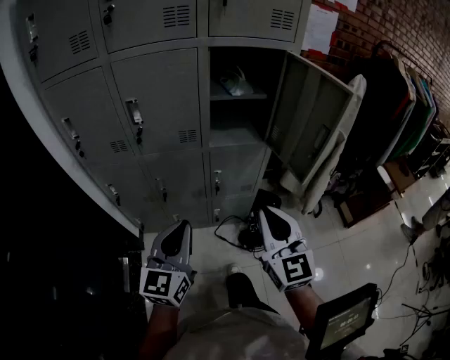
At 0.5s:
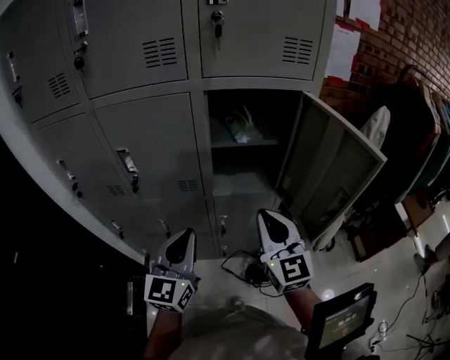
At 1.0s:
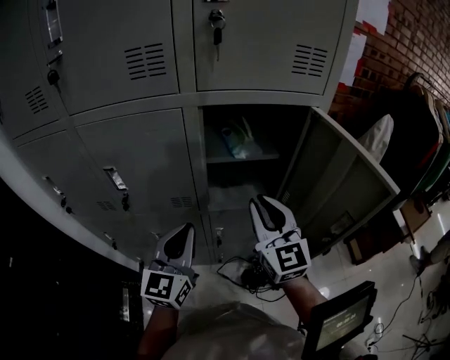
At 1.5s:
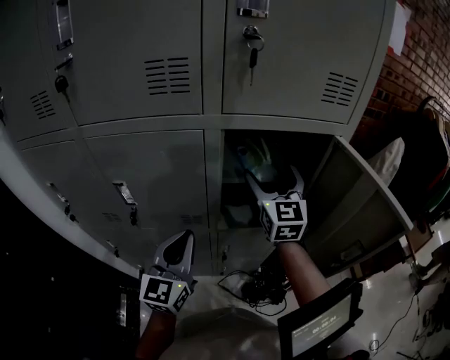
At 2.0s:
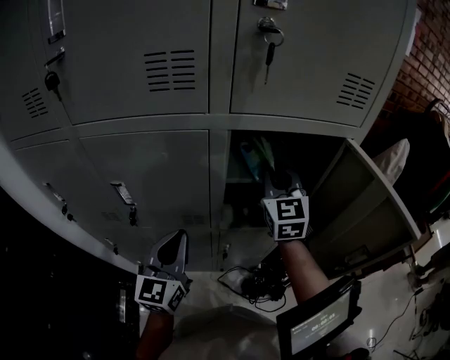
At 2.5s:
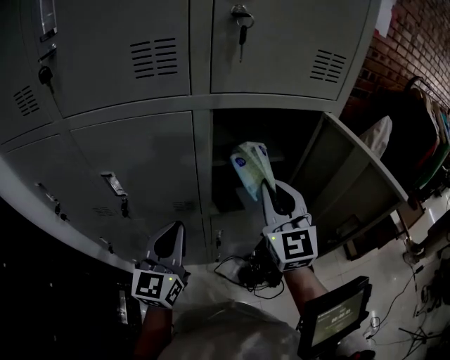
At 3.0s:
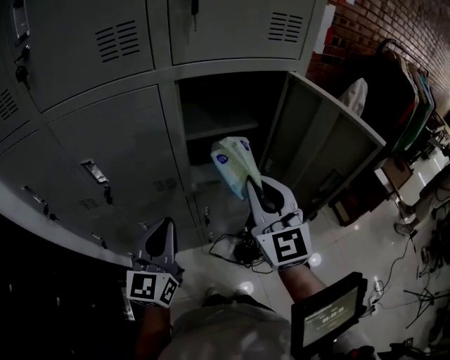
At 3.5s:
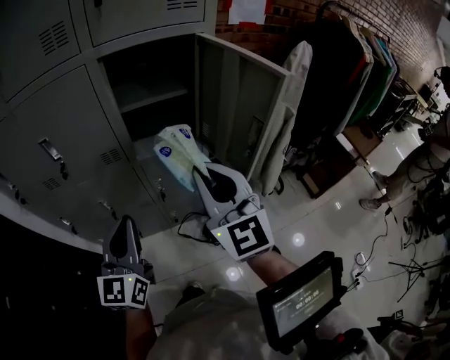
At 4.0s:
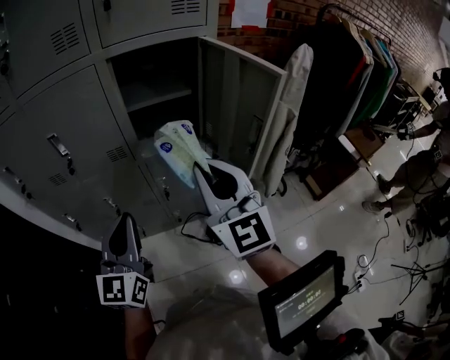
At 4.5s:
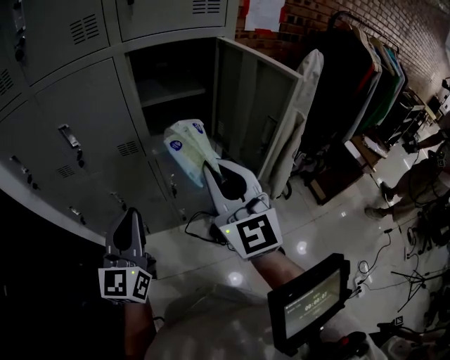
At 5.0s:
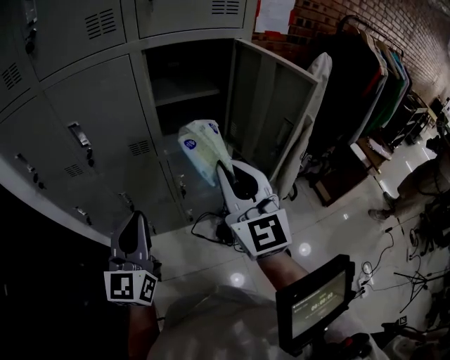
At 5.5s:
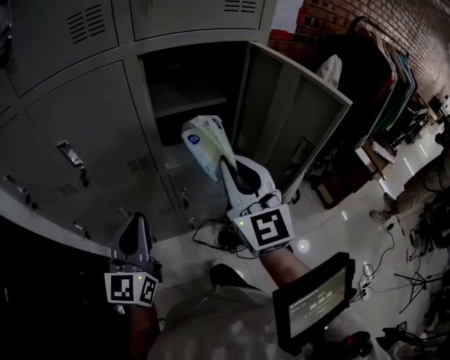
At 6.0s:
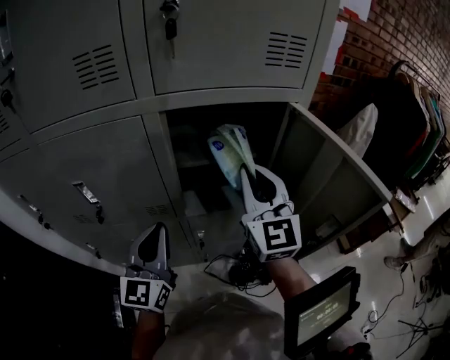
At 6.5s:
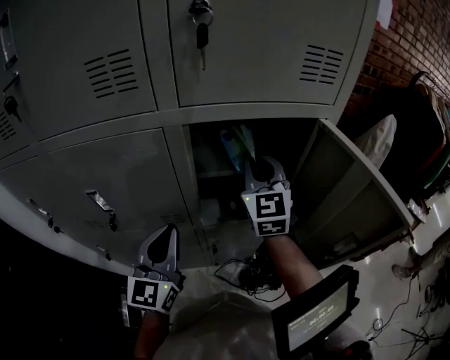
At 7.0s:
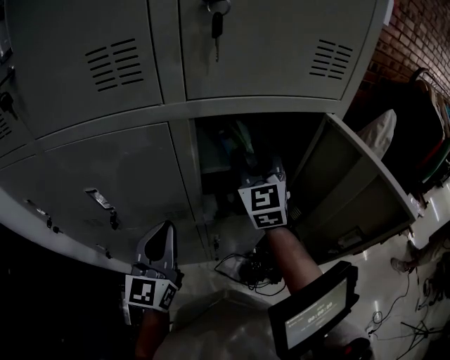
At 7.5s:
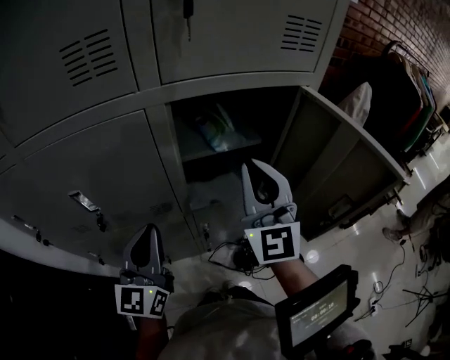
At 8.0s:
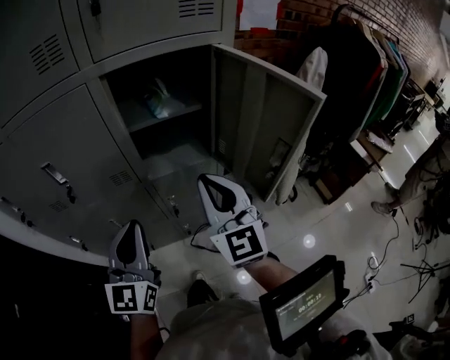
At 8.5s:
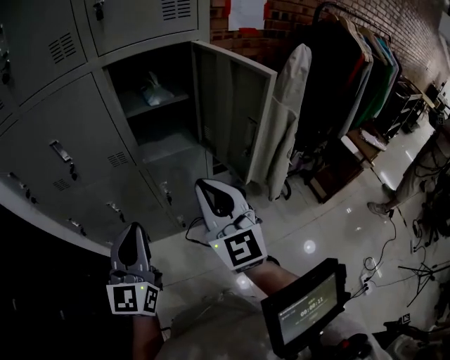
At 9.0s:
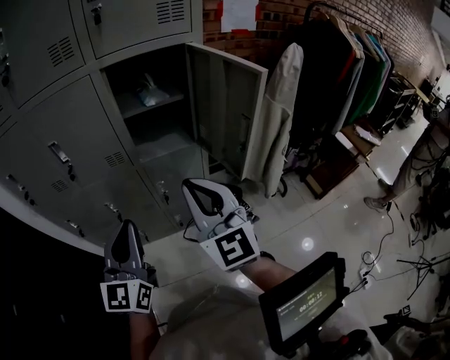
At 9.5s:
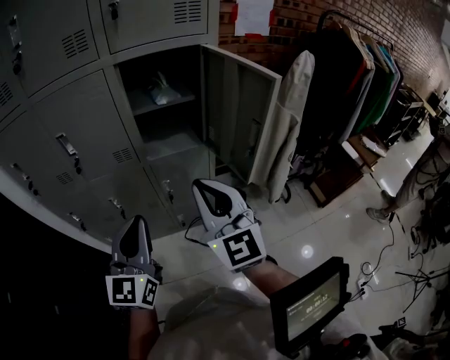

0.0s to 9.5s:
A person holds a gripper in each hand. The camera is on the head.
0.0s to 2.0s: The right gripper shifts roughly 40 cm forward, and opens, then closes once more. Meanwhile the left gripper travels forward by roughly 30 cm.
2.0s to 4.0s: The left gripper goes about 20 cm backward; the right gripper moves backward, approximately 35 cm.
4.0s to 5.5s: The right gripper shifts about 10 cm forward, while the left gripper shifts some 10 cm forward and to the left.
5.5s to 7.5s: Both grippers travel together forward, about 10 cm.
7.5s to 9.5s: The right gripper moves backward, approximately 25 cm; the left gripper is displaced backward and to the right by some 25 cm.

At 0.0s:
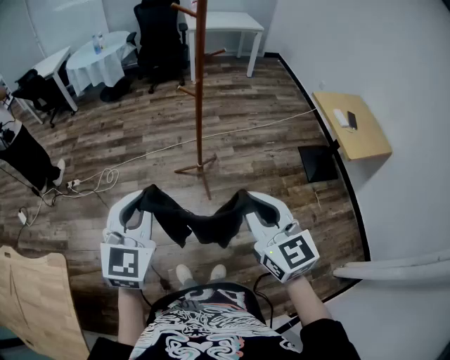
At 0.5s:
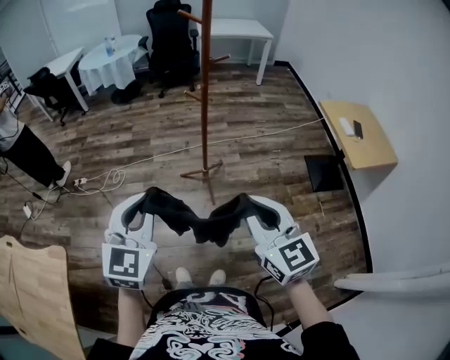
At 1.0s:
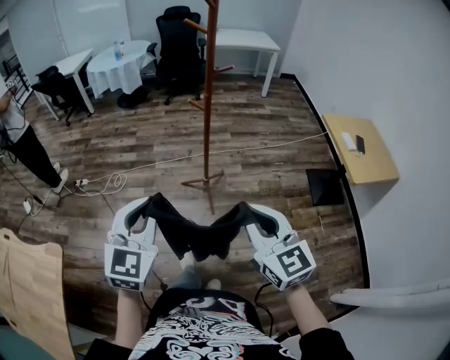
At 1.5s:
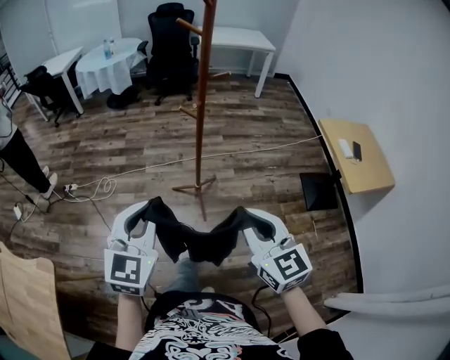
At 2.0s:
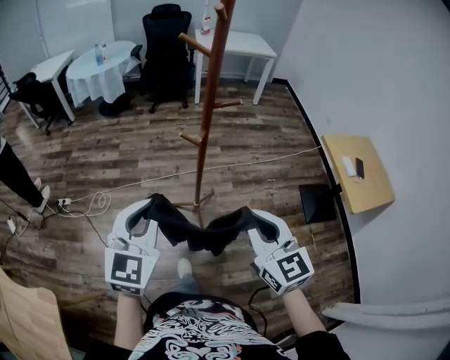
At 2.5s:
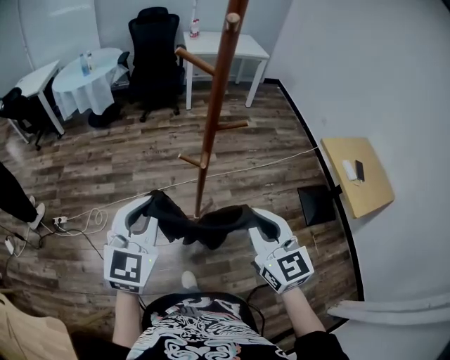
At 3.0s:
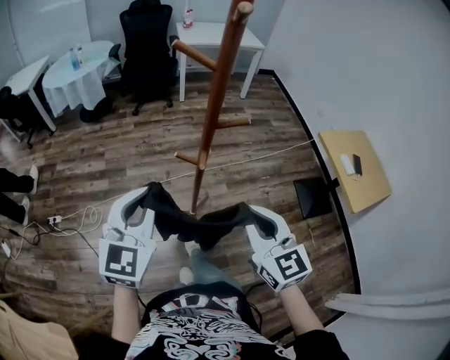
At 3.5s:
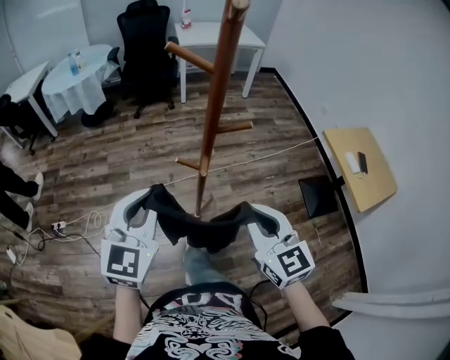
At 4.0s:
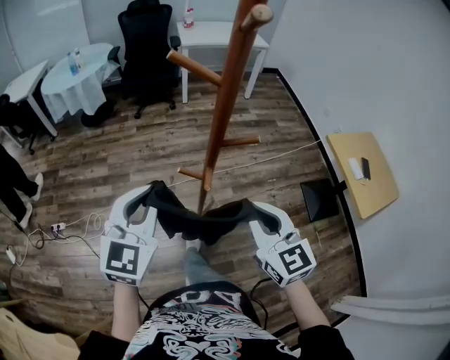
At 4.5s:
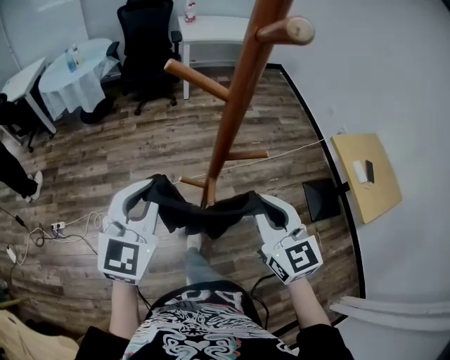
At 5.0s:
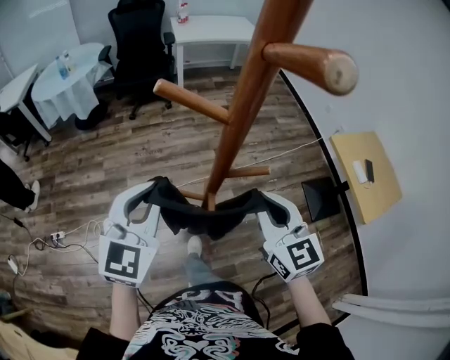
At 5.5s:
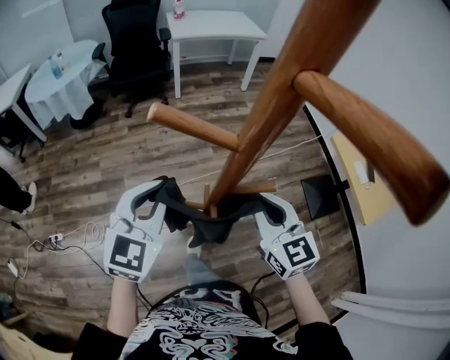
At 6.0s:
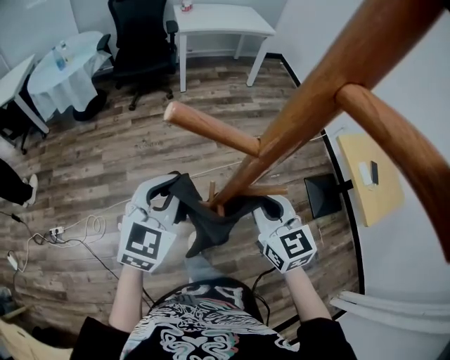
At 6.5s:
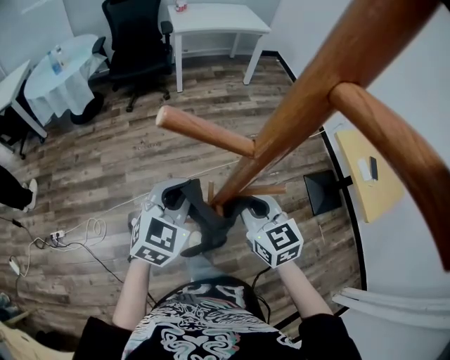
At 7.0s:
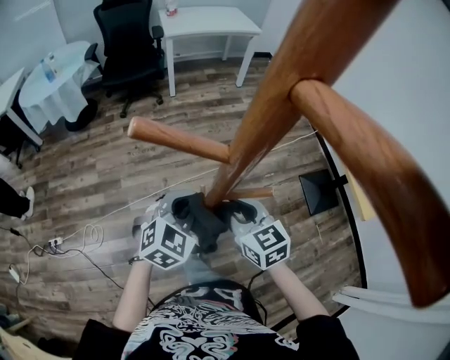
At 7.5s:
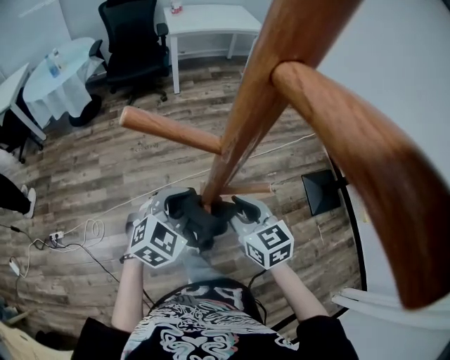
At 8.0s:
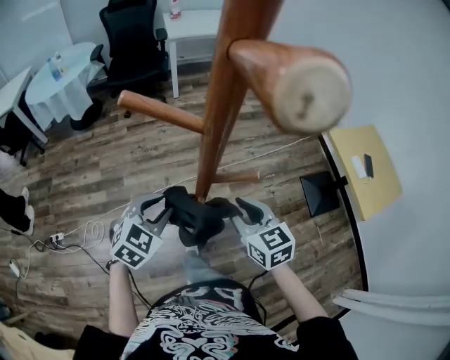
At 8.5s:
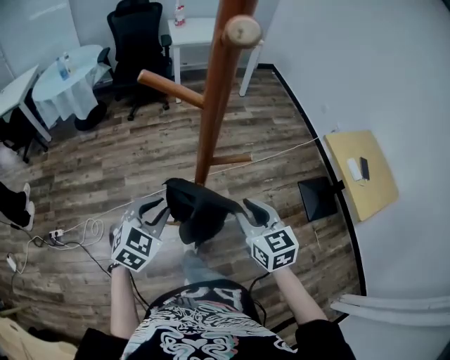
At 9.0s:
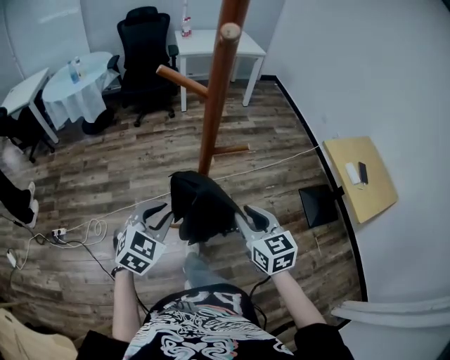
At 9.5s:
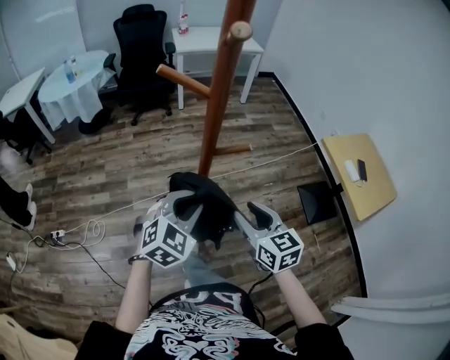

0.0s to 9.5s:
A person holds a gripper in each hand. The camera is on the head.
0.0s to 2.0s: The two grippers go roughly 20 cm forward.
2.0s to 4.0s: The two grippers go approximately 20 cm forward.
4.0s to 5.5s: Both grippers travel together forward, some 15 cm.
5.5s to 7.5s: The right gripper shifts approximately 10 cm downward, and opens up. The left gripper shifts about 15 cm downward and to the right, and swivels approximately 30 degrees.
7.5s to 9.5s: The two grippers go approximately 10 cm backward.

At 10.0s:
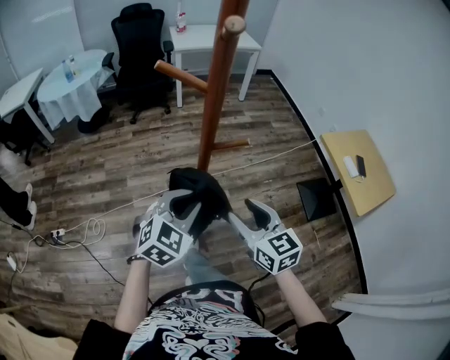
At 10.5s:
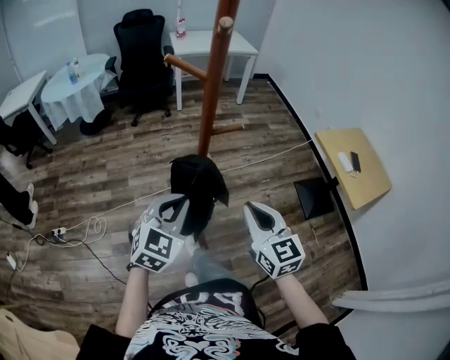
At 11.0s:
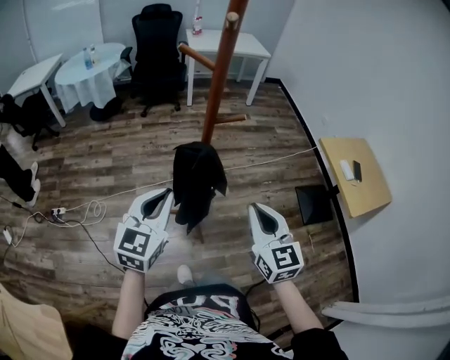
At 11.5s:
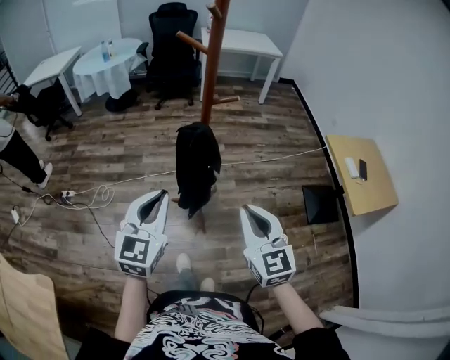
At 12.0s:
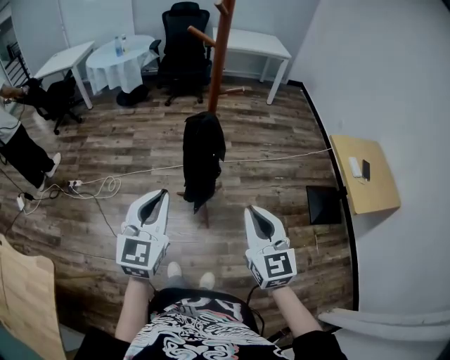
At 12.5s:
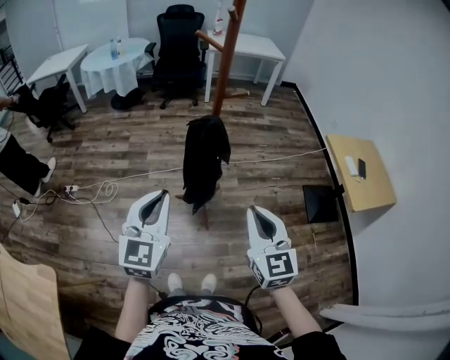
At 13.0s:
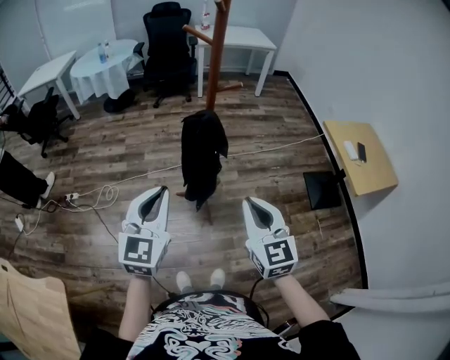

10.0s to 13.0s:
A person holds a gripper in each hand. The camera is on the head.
10.0s to 11.5s: The grippers both shift backward by some 20 cm. The right gripper closes its fingers; the left gripper changes its angle by approximately 40 degrees.
11.5s to 13.0s: The left gripper ends up approximately 5 cm from where it was. Meanwhile the right gripper moves some 5 cm.

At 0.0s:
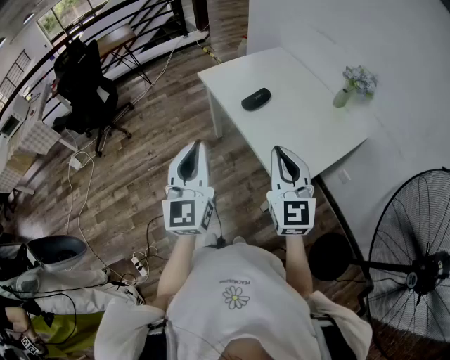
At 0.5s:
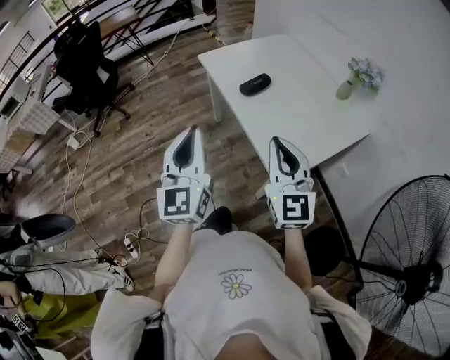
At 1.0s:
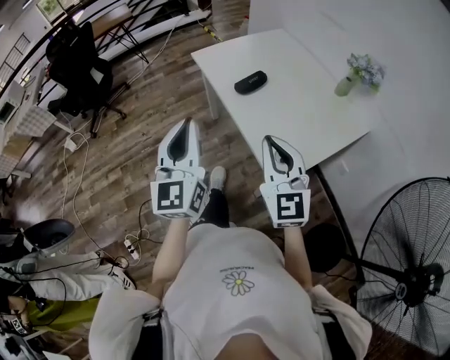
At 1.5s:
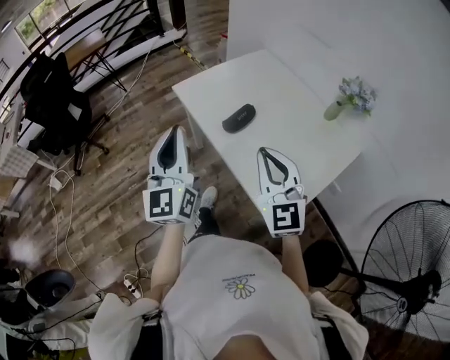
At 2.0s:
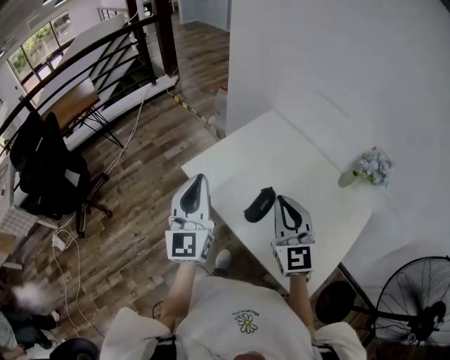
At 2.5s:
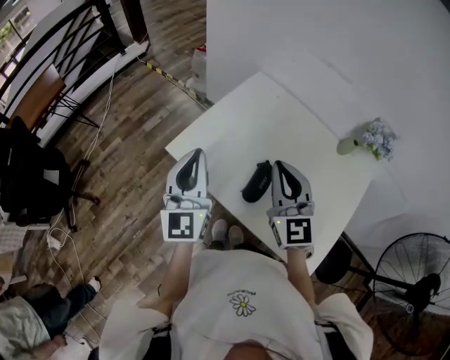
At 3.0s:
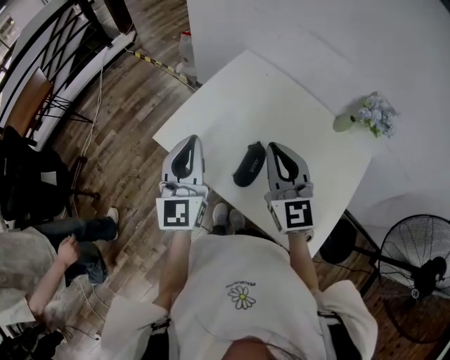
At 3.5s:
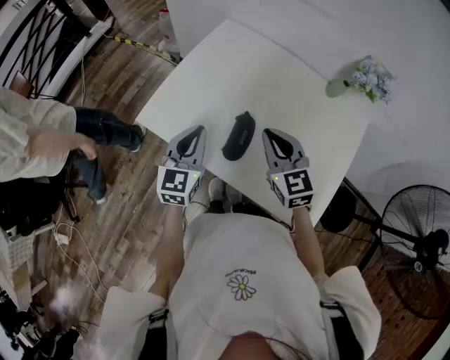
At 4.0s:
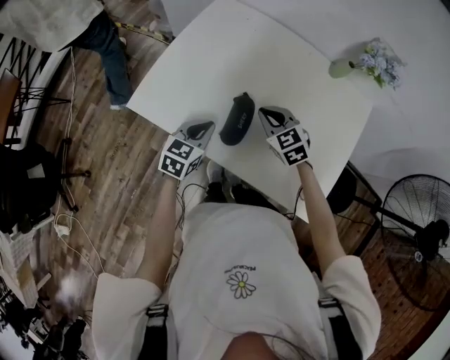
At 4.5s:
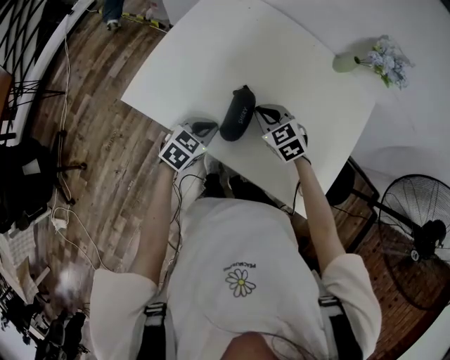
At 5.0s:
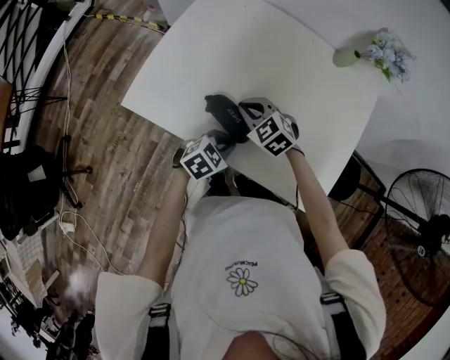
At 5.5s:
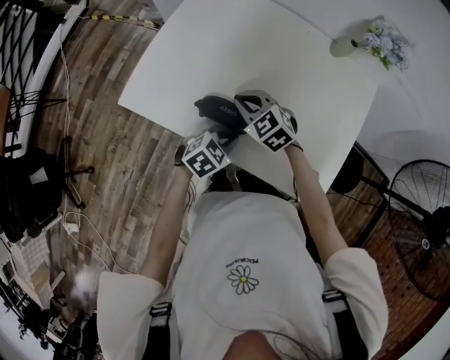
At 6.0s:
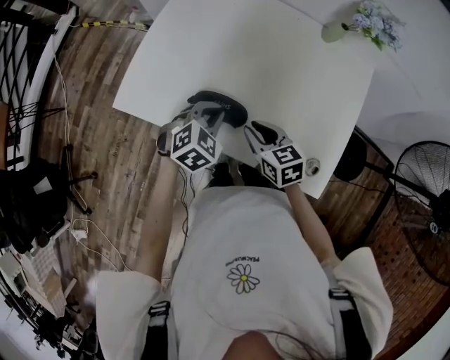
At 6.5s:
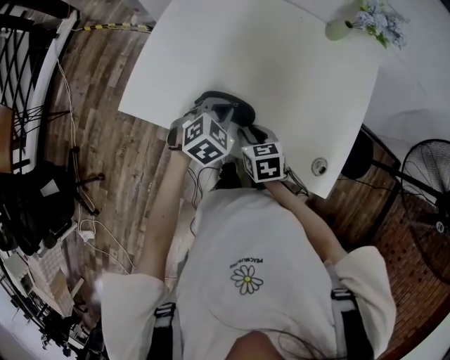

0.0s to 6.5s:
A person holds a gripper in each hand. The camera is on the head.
0.0s to 2.0s: Both grippers move forward, about 40 cm.
2.0s to 4.5s: Both grippers move downward, approximately 30 cm. The left gripper points its fingers about 60 degrees further downward. The right gripper tilts its fingers approximately 50 degrees downward.
4.5s to 6.5s: The left gripper moves approximately 5 cm, and turns by some 20 degrees; the right gripper shifts some 10 cm backward, changes its angle by some 40 degrees, and opens up.
